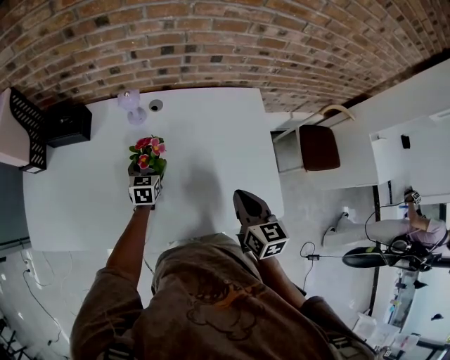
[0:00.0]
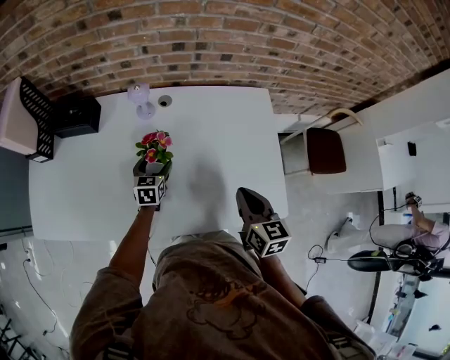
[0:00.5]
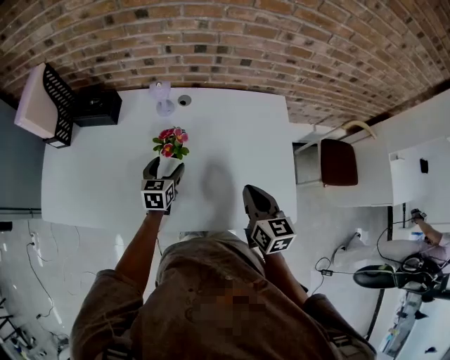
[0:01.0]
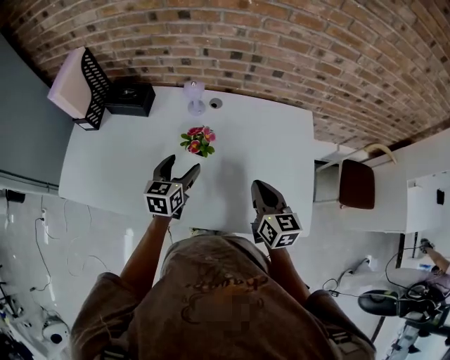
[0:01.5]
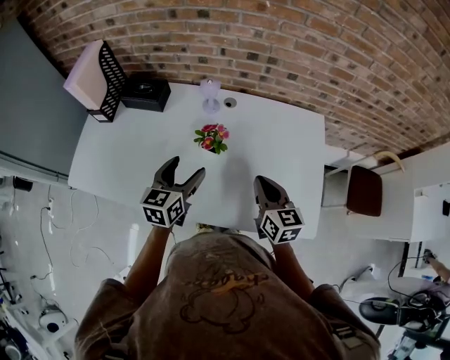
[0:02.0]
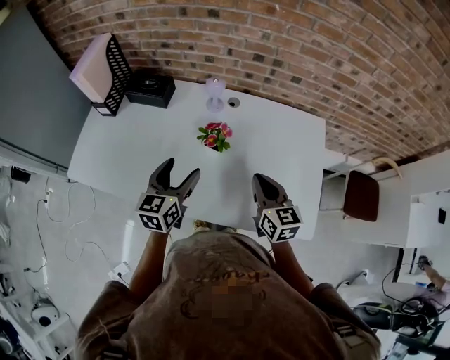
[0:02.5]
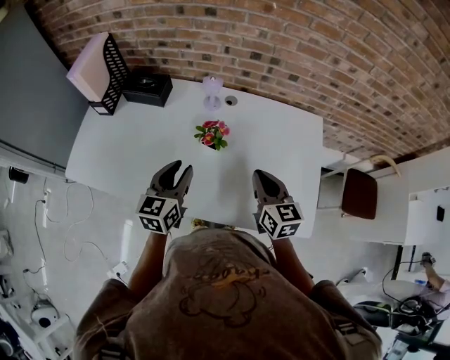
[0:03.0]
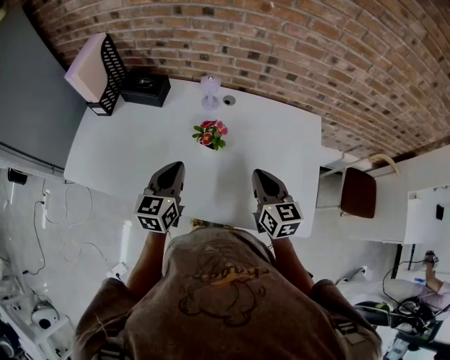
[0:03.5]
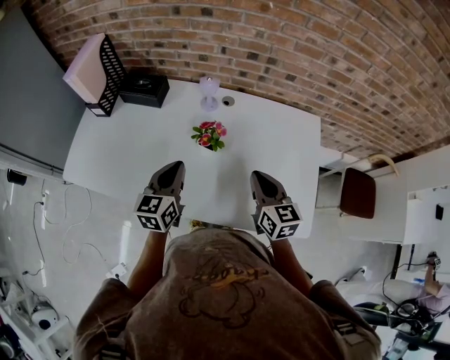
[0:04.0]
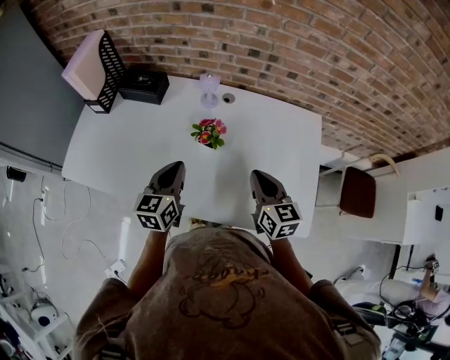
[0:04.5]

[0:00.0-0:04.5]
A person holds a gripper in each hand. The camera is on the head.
0:00.0 to 0:02.0: The left gripper shifts some 25 cm upward and backward; the right gripper travels to the left by roughly 10 cm.
0:02.0 to 0:04.5: The left gripper closes up.

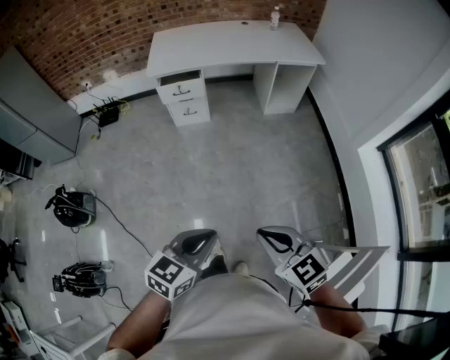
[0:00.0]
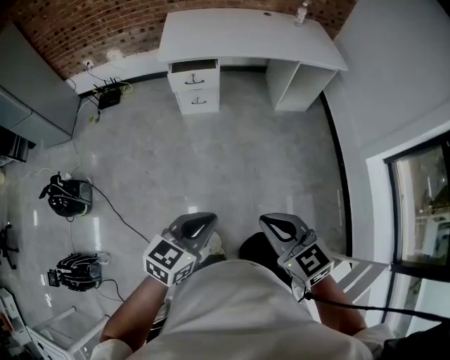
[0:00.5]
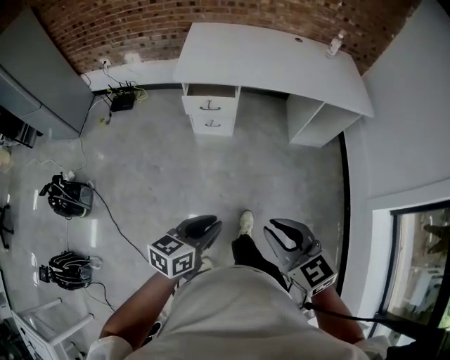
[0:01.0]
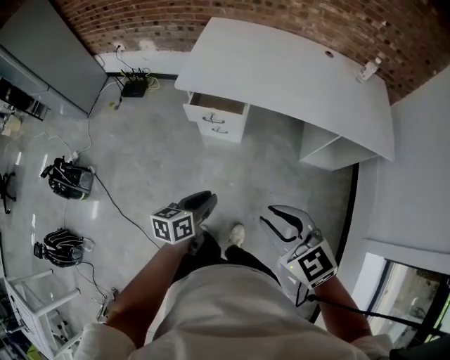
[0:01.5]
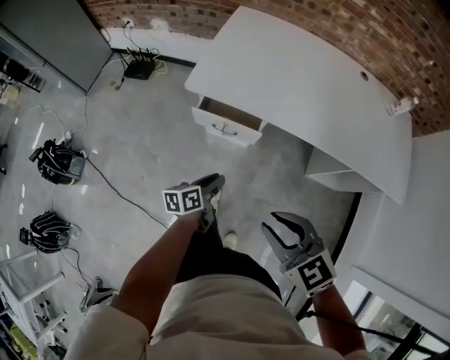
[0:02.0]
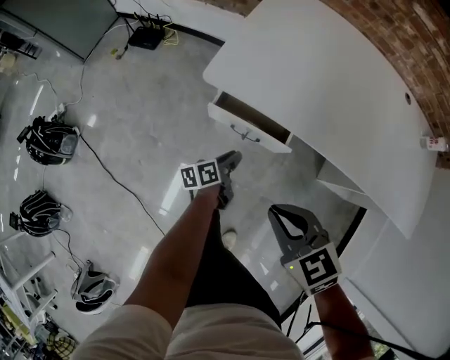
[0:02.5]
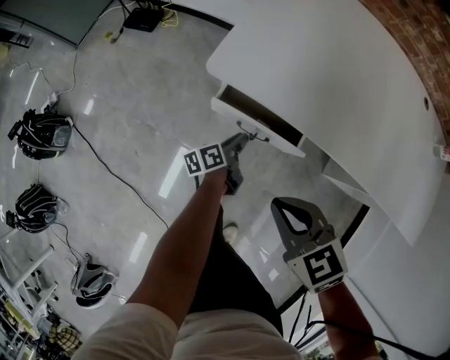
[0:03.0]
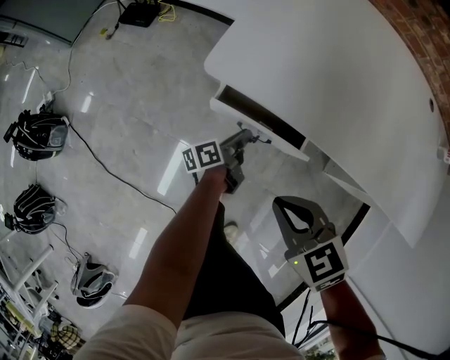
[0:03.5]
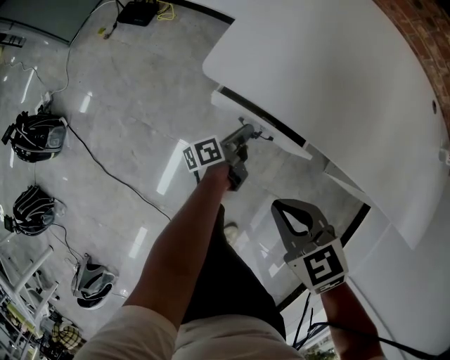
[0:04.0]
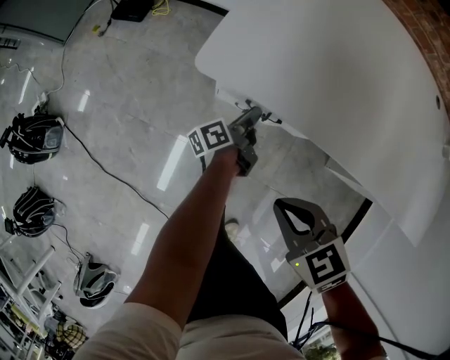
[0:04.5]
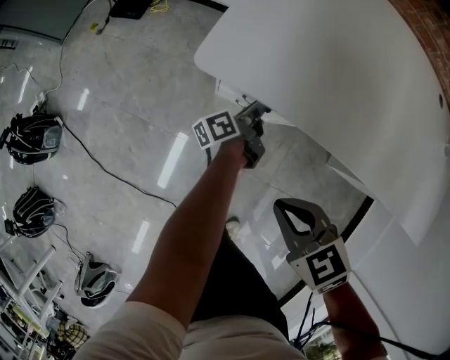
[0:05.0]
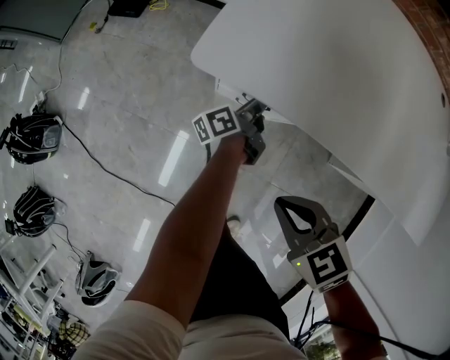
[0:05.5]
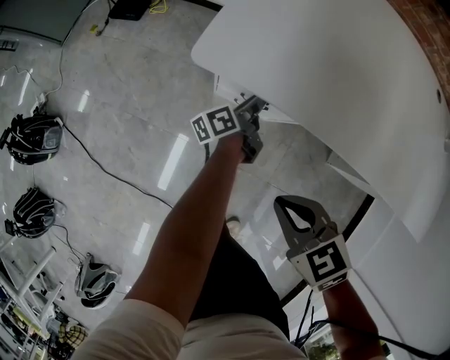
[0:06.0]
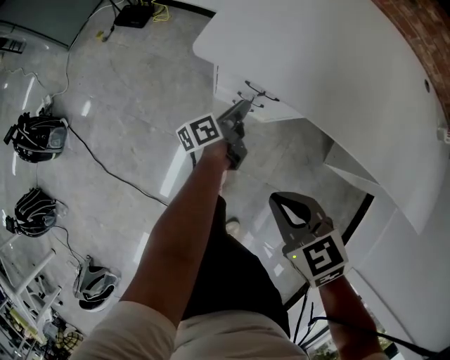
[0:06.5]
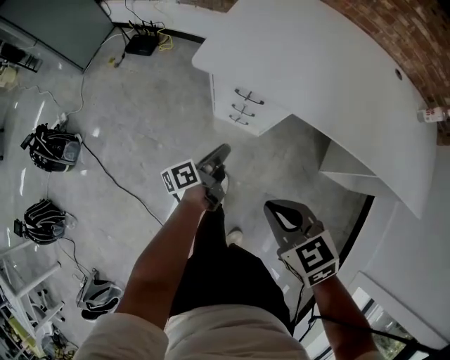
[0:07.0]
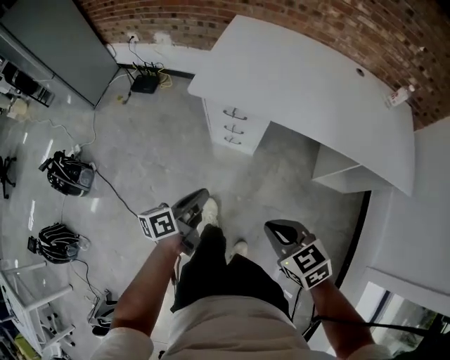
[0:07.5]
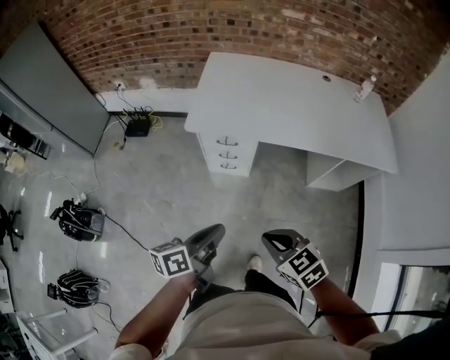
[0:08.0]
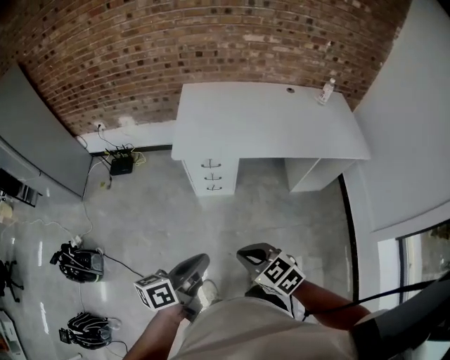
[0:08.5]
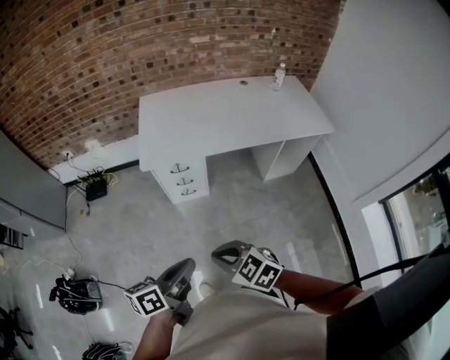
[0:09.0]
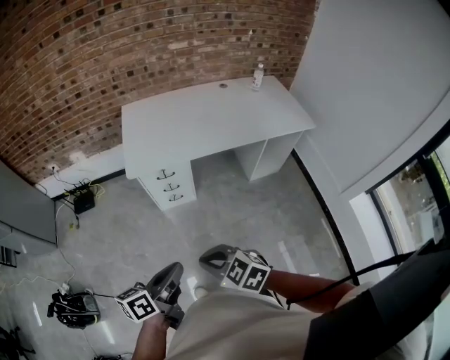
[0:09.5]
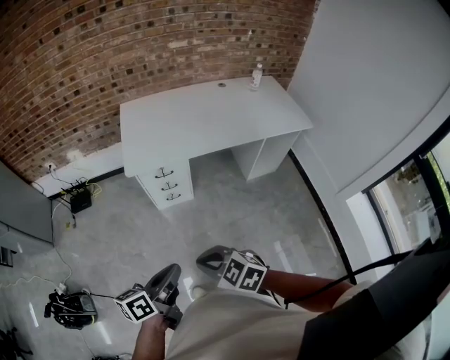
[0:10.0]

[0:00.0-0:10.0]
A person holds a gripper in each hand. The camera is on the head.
0:00.0 to 0:02.0: The pair of grippers is taken some 70 cm. The left gripper twists some 50 degrees counterclockwise, seen from behind; the right gripper turns by about 30 degrees, and opens.
0:02.0 to 0:04.0: The grippers both shift forward and downward by roughly 30 cm. The left gripper changes its angle by approximately 40 degrees. Meanwhile the right gripper turns by about 20 degrees, and closes up.
0:04.0 to 0:06.0: The left gripper heads forward, covering roughly 5 cm.
0:06.0 to 0:08.0: The right gripper shifts roughly 40 cm backward and upward. The left gripper is displaced backward and upward by approximately 60 cm, and changes its angle by approximately 30 degrees.
0:08.0 to 0:10.0: The right gripper shifts some 20 cm to the left and backward; the left gripper heads backward, to the left and upward, covering approximately 15 cm.

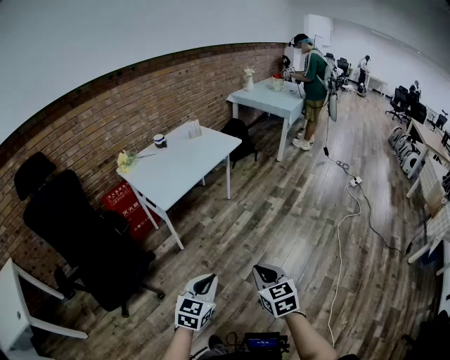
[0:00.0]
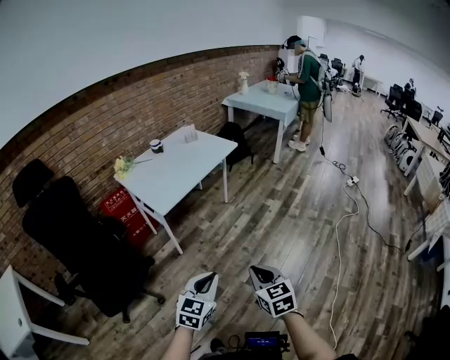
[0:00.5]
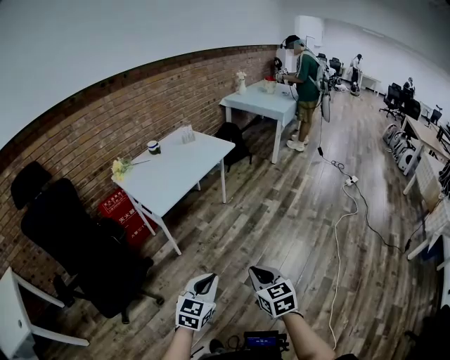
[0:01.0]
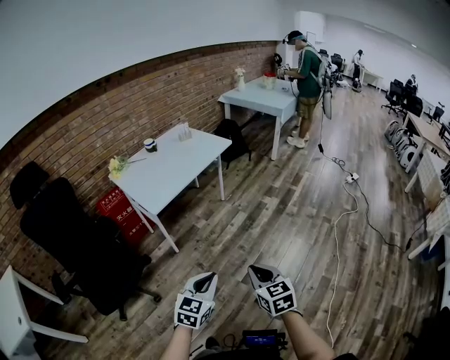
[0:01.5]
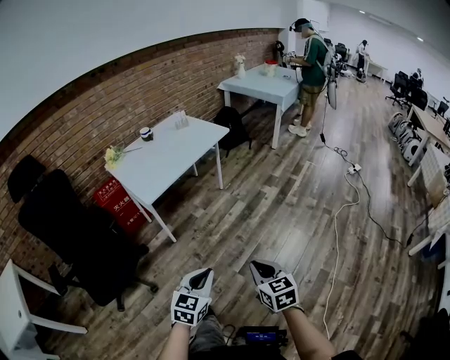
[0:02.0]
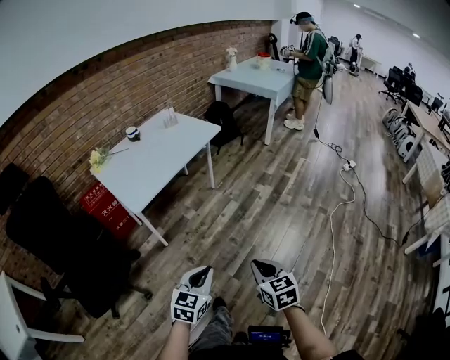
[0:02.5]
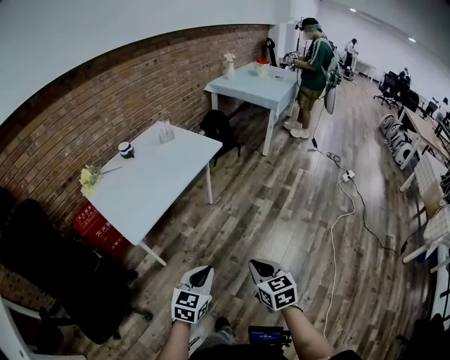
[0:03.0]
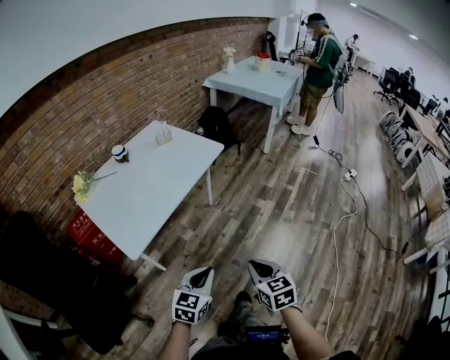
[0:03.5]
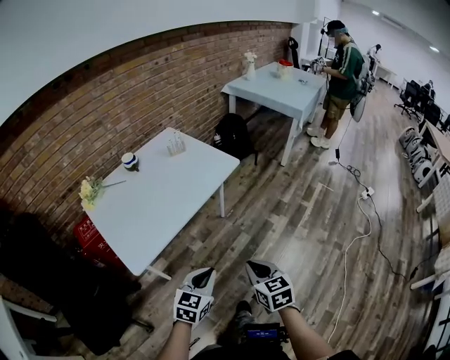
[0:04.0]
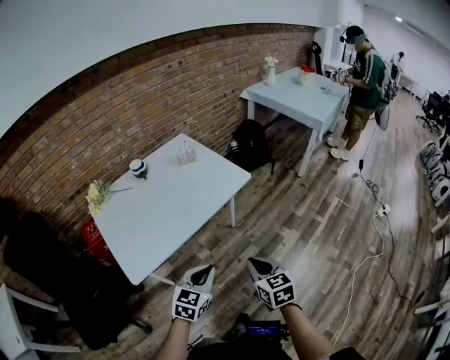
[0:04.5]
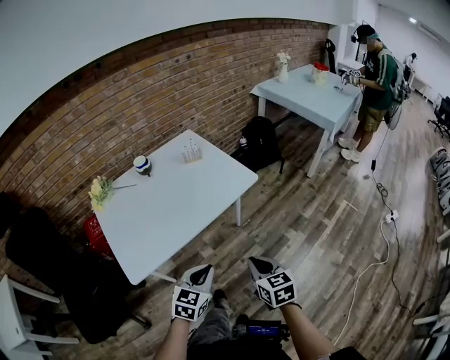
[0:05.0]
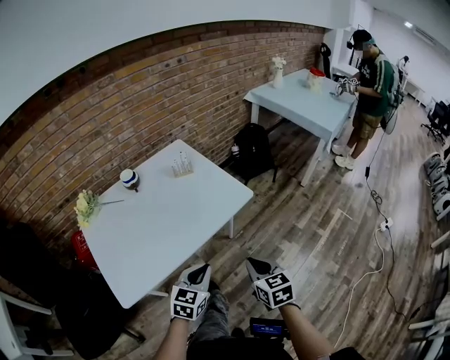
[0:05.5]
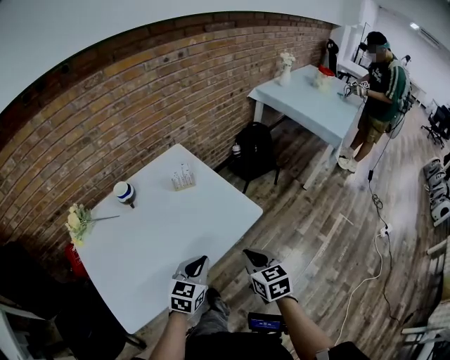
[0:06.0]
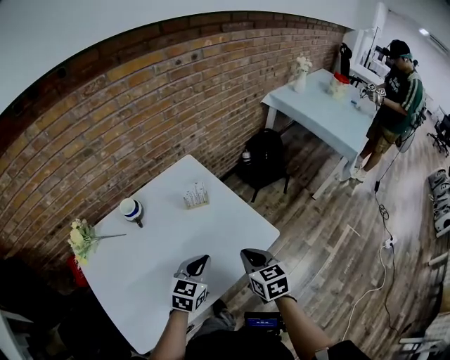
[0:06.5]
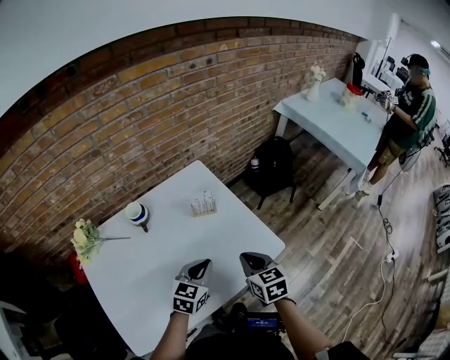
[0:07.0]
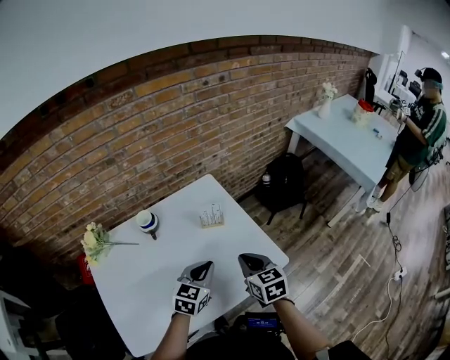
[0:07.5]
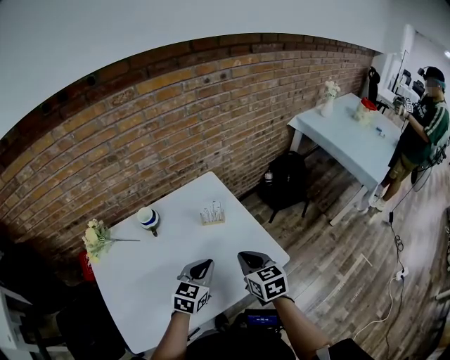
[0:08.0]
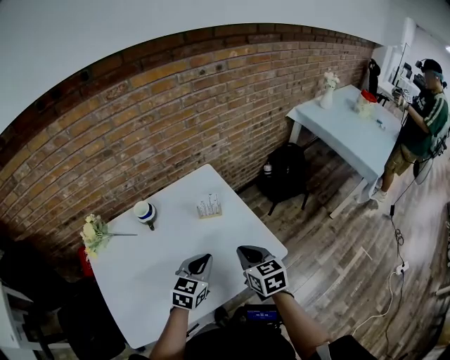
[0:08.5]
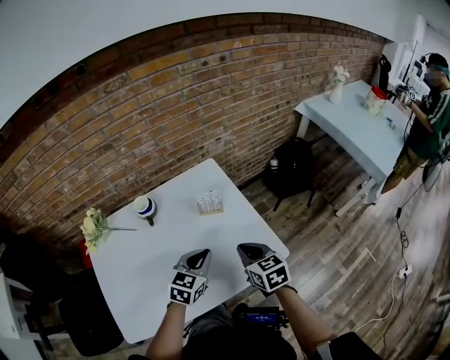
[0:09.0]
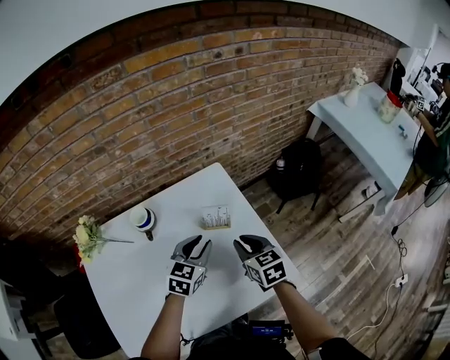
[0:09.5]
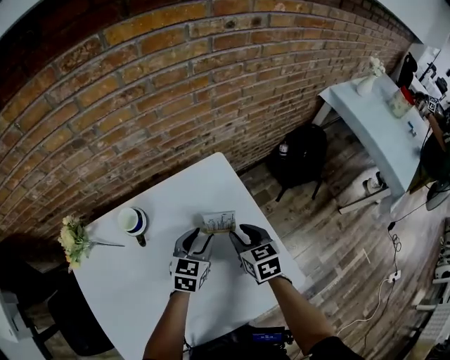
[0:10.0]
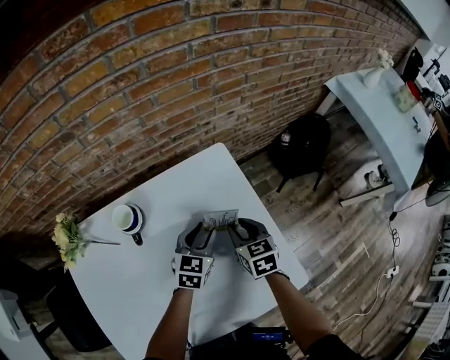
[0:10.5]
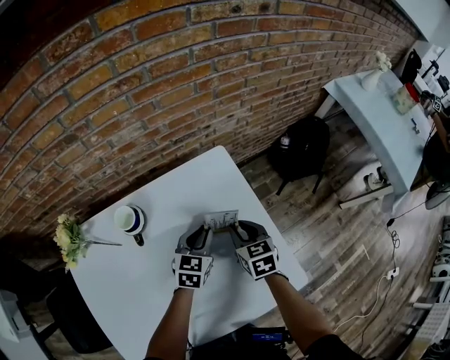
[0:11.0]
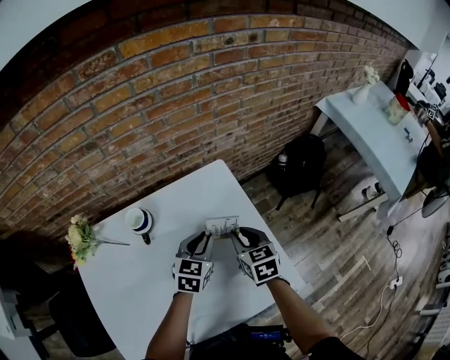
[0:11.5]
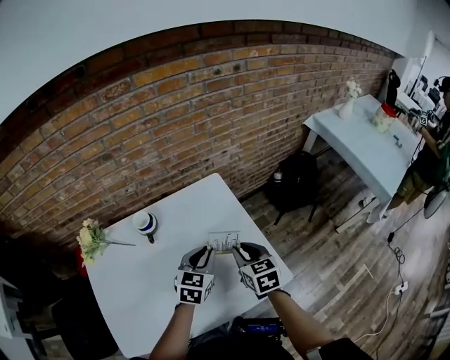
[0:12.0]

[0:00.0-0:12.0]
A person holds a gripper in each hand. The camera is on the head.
0:00.0 to 0:02.0: Both grippers travel together to the right, about 10 cm.
0:02.0 to 0:04.0: Both grippers are carried forward, roughly 40 cm.
0:04.0 to 0:06.0: Both grippers travel together forward, approximately 40 cm.
0:06.0 to 0:08.0: The left gripper is displaced forward by roughly 15 cm. Meanwhile the right gripper shifts about 20 cm forward and to the left.
0:08.0 to 0:10.0: Both grippers travel together forward and downward, approximately 25 cm. The left gripper opens; the right gripper opens its fingers.
0:10.0 to 0:12.0: Both grippers move backward and upward, about 15 cm. The left gripper closes its fingers.
